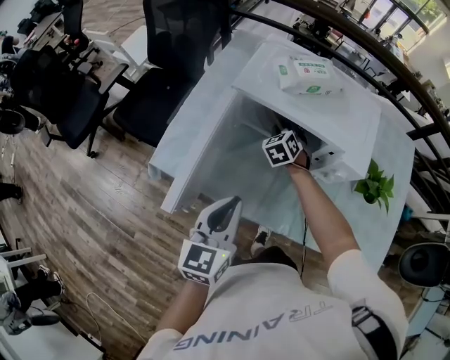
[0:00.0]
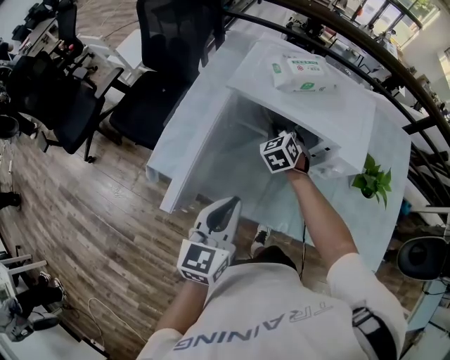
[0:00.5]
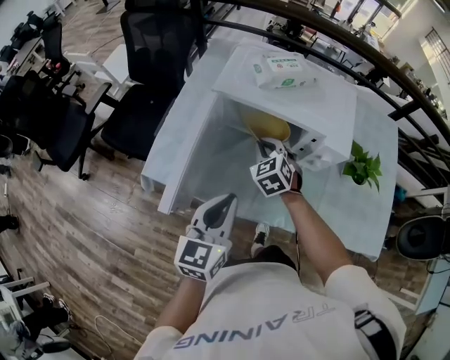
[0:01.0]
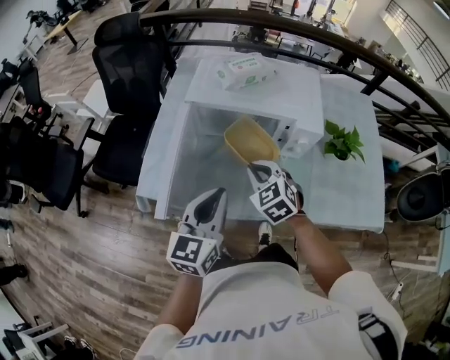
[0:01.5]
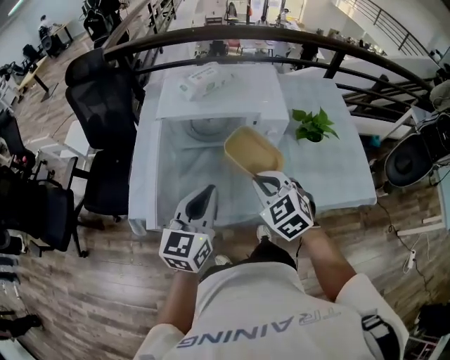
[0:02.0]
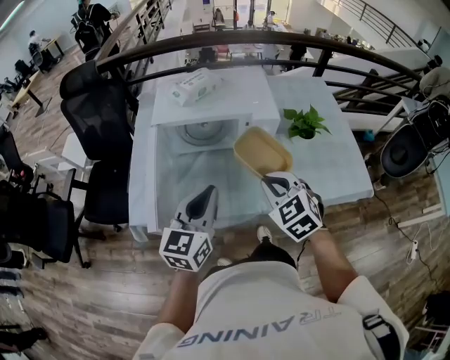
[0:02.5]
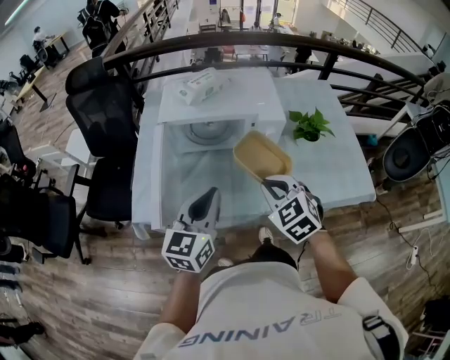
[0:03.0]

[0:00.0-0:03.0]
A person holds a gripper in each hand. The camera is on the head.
0:00.0 to 0:01.5: The right gripper heads backward and upward, covering approximately 25 cm.
0:01.5 to 0:03.0: The right gripper travels backward, to the right and upward by roughly 15 cm.

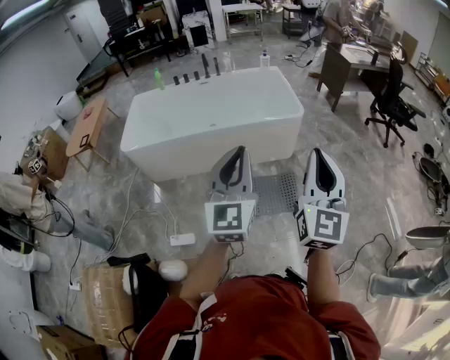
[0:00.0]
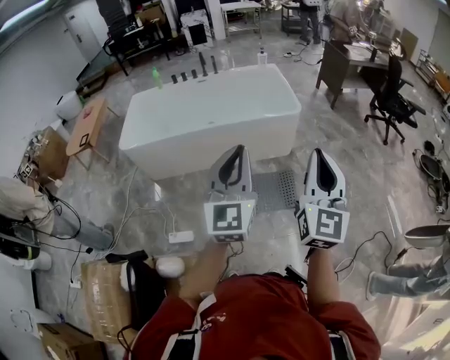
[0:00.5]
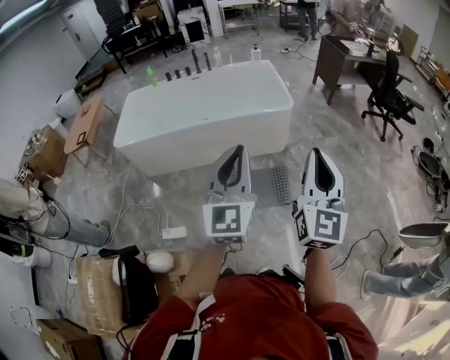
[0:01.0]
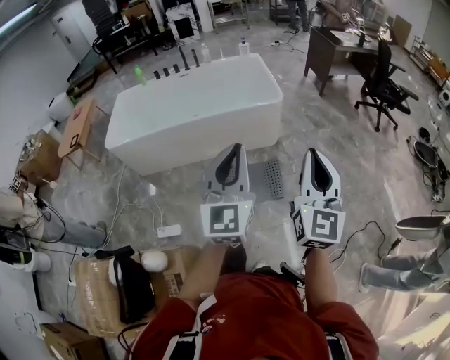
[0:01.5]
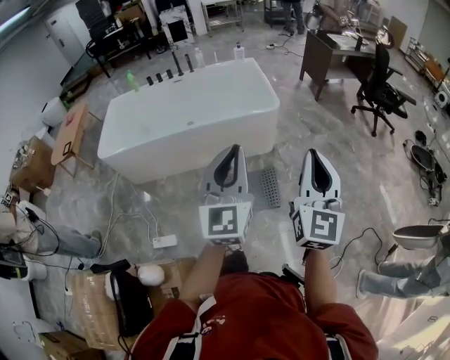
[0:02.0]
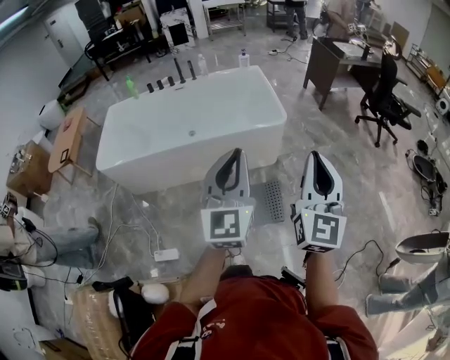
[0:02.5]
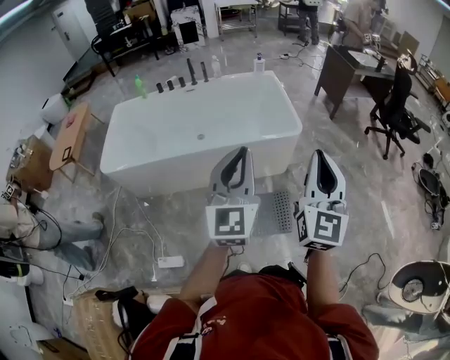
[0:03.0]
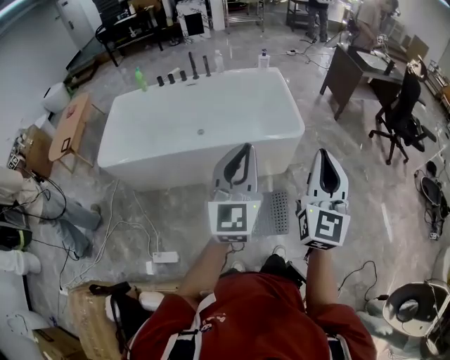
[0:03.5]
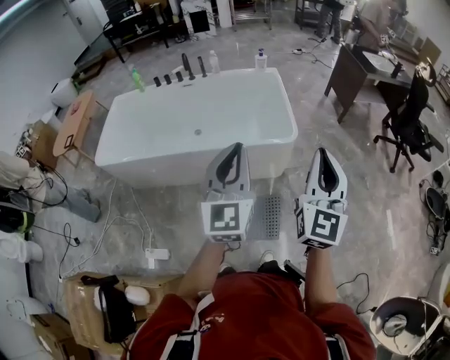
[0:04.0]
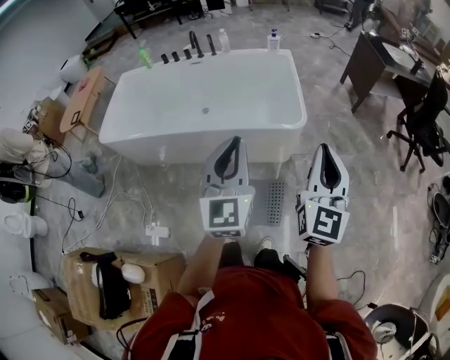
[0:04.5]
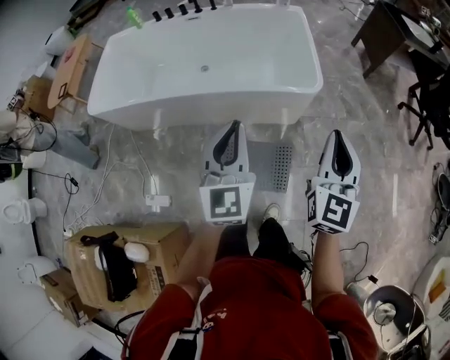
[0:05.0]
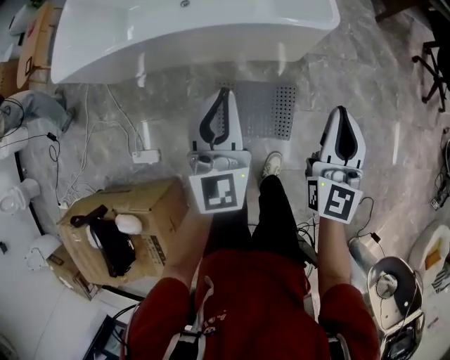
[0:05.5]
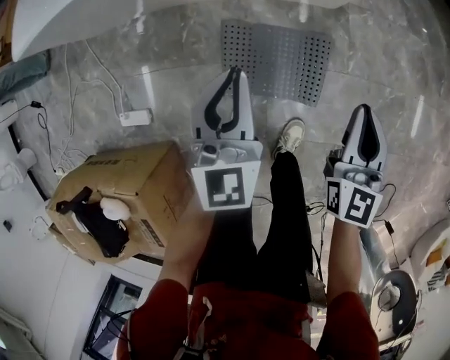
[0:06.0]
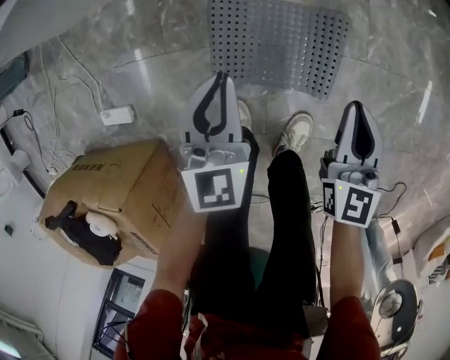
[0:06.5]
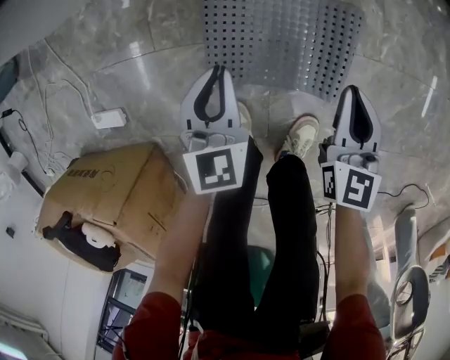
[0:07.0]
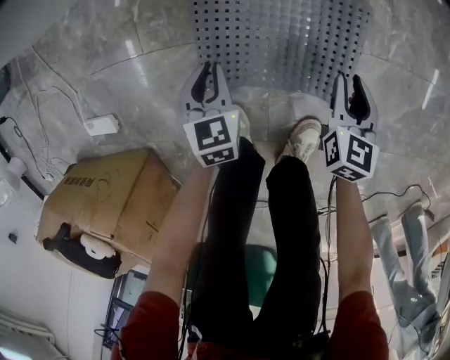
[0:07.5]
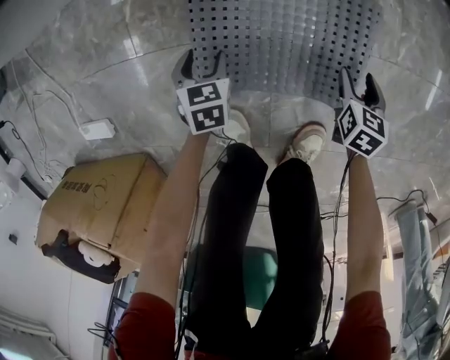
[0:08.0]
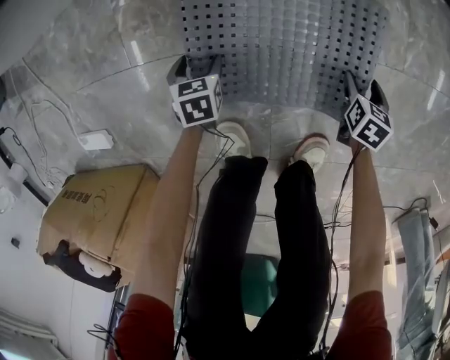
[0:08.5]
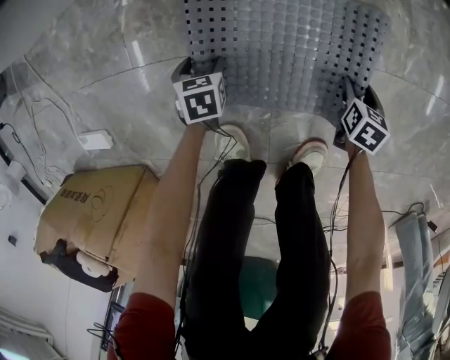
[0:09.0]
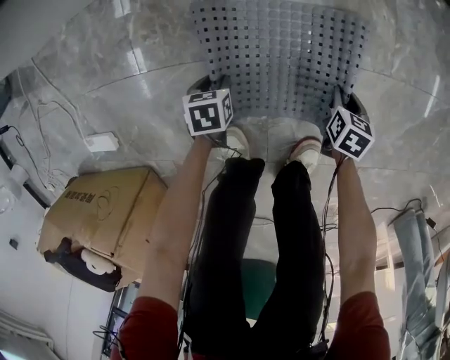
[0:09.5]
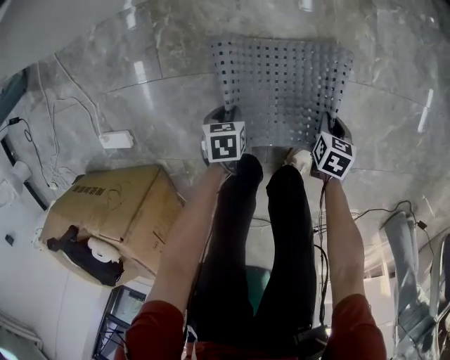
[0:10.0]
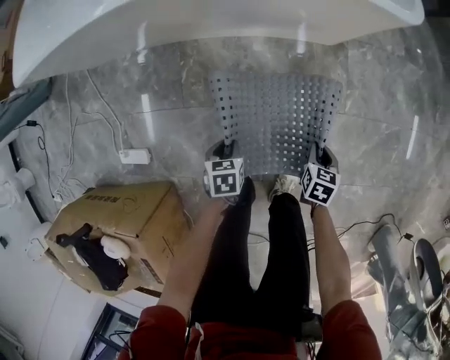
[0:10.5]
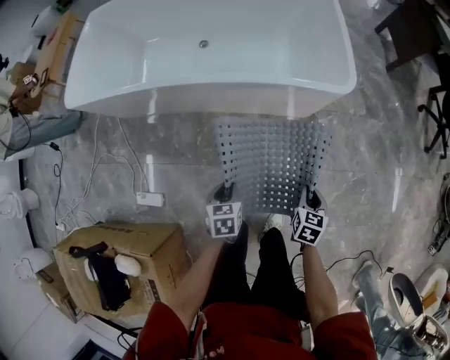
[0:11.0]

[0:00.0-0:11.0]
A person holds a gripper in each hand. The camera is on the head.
0:00.0 to 0:02.0: The two grippers go approximately 15 cm to the right and forward.
0:02.0 to 0:03.5: Both grippers travel together forward and to the left, roughly 25 cm.
0:03.5 to 0:05.5: The left gripper goes about 25 cm downward; the right gripper travels downward and forward by some 30 cm.
0:05.5 to 0:07.5: The two grippers go approximately 70 cm downward. The left gripper tilts its fingers some 40 degrees downward; the right gripper tips its fingers downward by approximately 40 degrees, and opens its fingers.
0:07.5 to 0:09.0: The grippers both shift downward by roughly 20 cm. The left gripper changes its angle by some 20 degrees, and opens its fingers. Meanwhile the right gripper changes its angle by some 20 degrees, and opens.
0:09.0 to 0:11.0: Both grippers travel together upward, some 60 cm. The right gripper closes up. The left gripper closes its fingers.

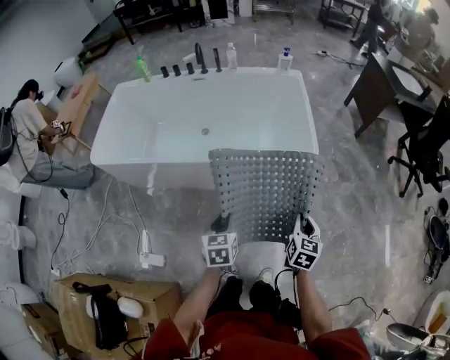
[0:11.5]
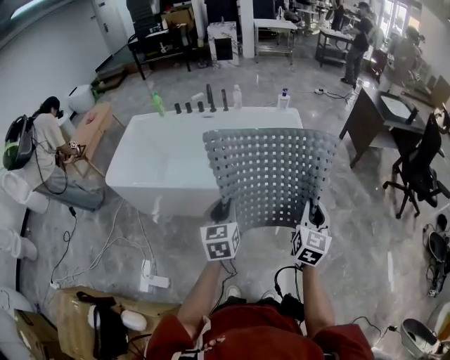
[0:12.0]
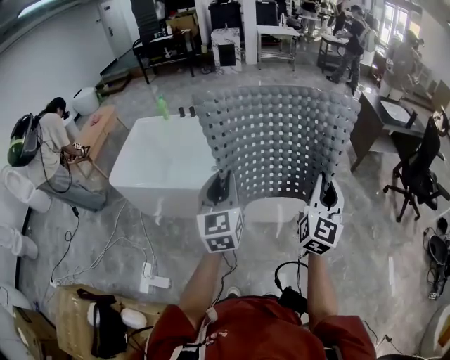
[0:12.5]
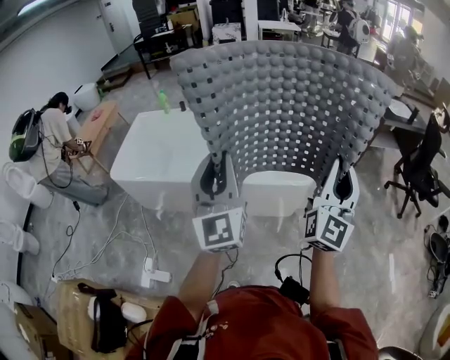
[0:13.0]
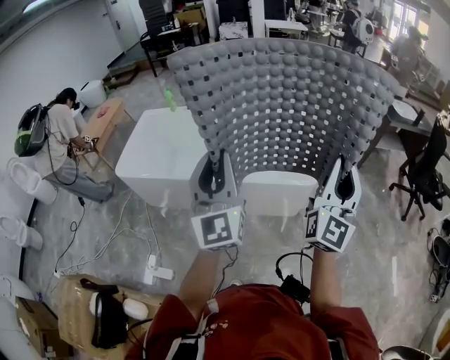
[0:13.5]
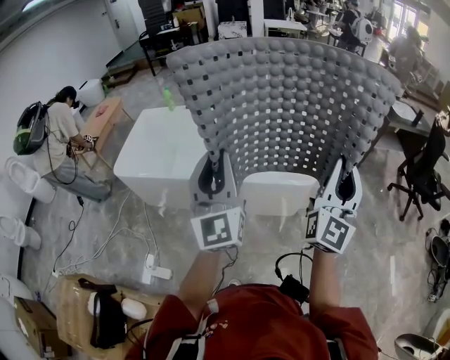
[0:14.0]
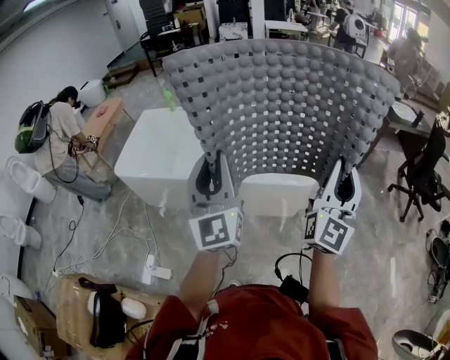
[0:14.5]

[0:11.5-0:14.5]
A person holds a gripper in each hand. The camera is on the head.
0:11.5 to 0:13.0: Both grippers travel together upward, approximately 40 cm. The right gripper angles its fingers upward, by approximately 60 degrees. Meanwhile the left gripper points its fingers approximately 60 degrees further upward.
0:13.0 to 0:14.5: The grippers move only a little.

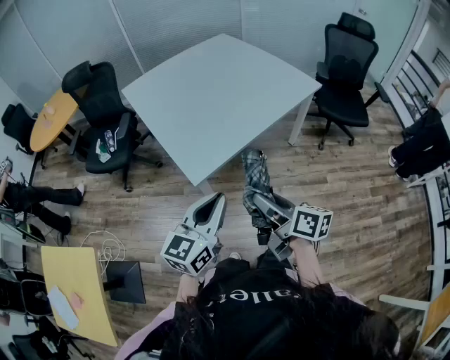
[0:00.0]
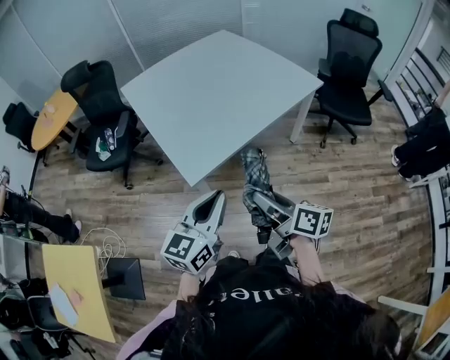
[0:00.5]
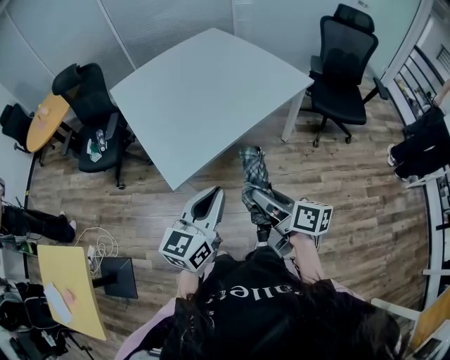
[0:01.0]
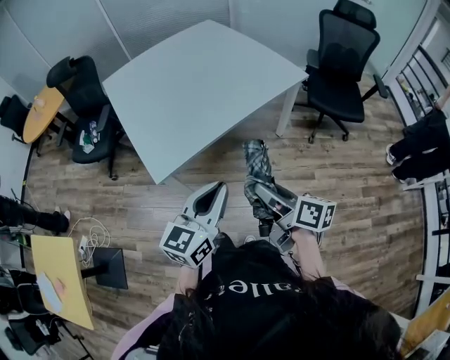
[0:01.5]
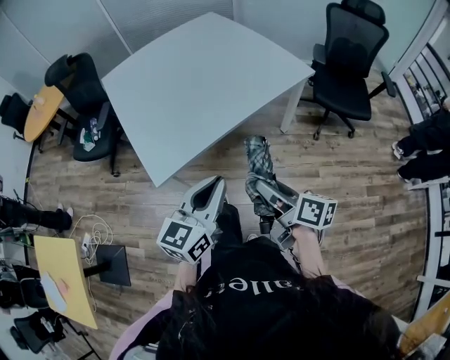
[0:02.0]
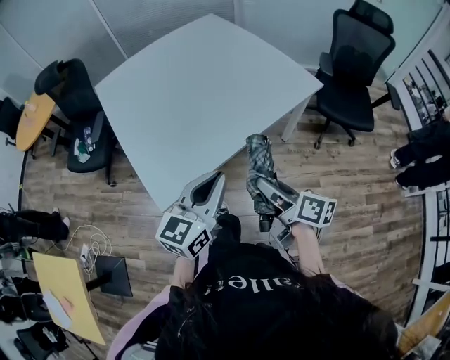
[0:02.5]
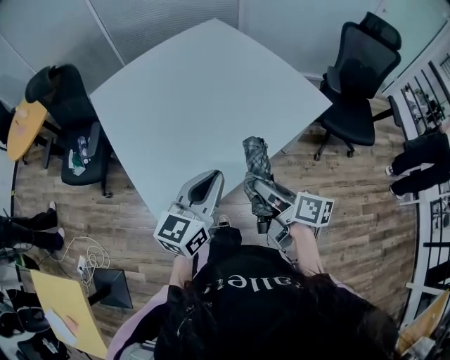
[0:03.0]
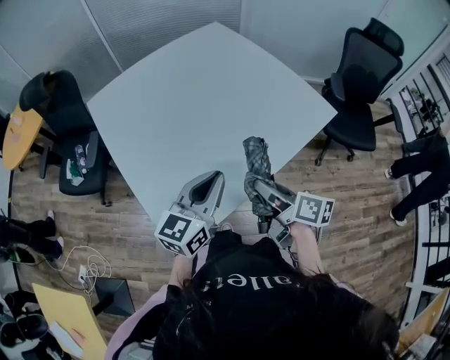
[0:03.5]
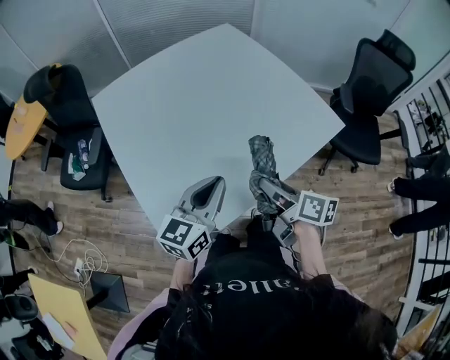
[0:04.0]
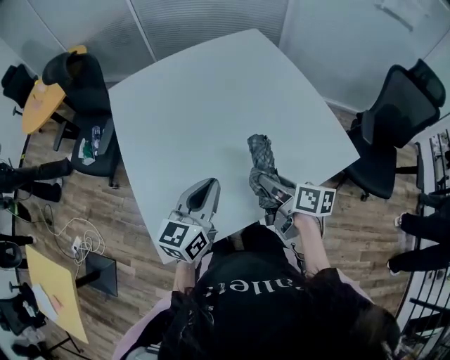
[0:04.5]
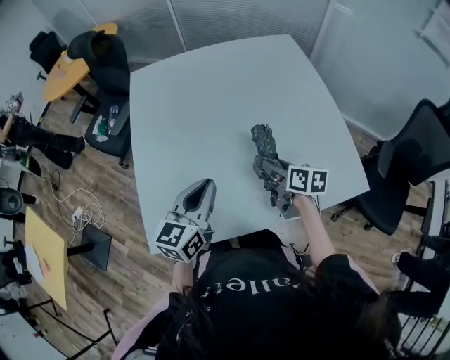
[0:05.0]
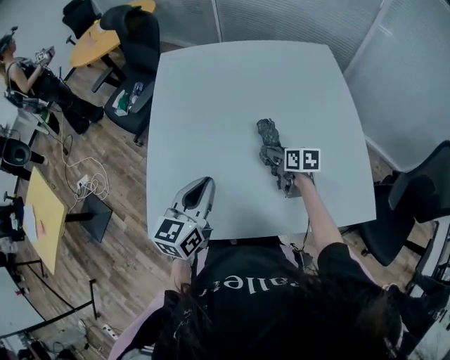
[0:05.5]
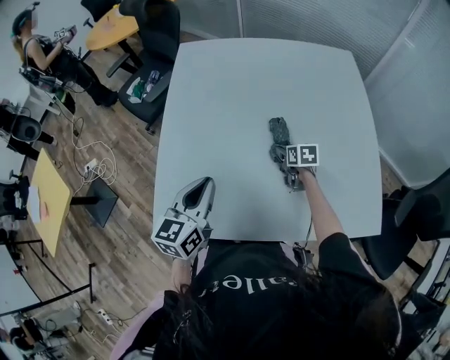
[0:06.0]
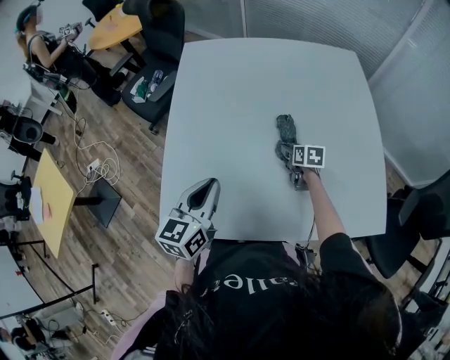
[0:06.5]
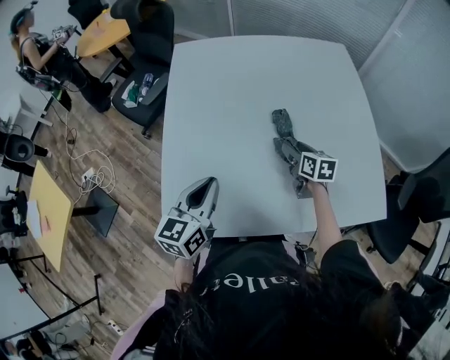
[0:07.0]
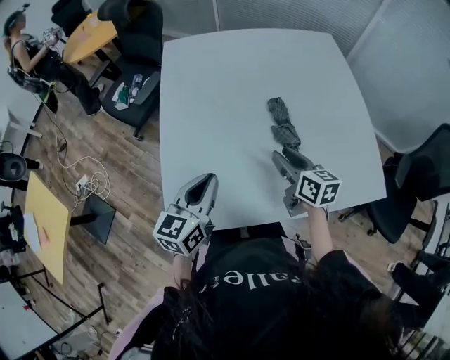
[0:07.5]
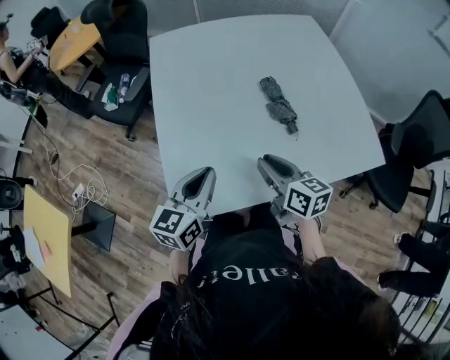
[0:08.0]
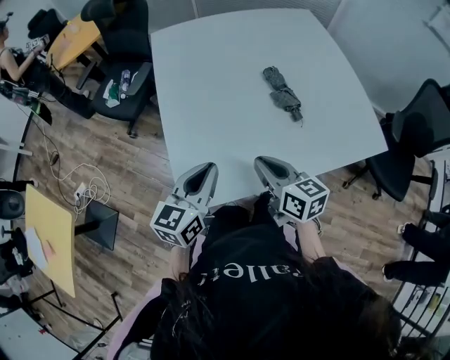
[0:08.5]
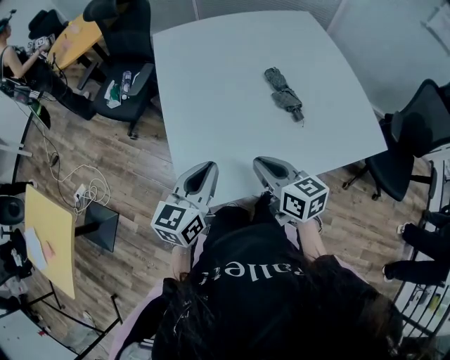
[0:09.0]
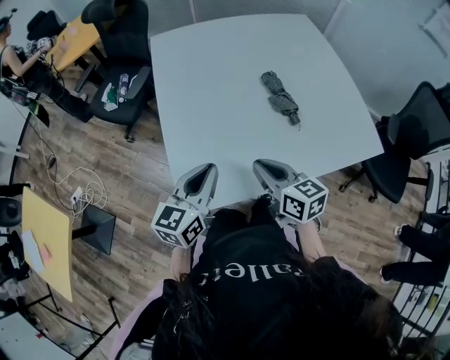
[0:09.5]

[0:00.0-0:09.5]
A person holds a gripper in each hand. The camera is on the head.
0:00.0 to 0:02.0: Both grippers travel together to the right and forward, approximately 20 cm.
0:02.0 to 0:04.0: The grippers both shift forward by some 30 cm.
0:04.0 to 0:05.5: The left gripper shifts by about 10 cm, and changes its angle by some 40 degrees, while the right gripper shifts by roughly 35 cm, and swivels approximately 50 degrees.
0:05.5 to 0:07.5: The left gripper moves to the left, some 10 cm. Meanwhile the right gripper goes roughly 15 cm upward, to the left and backward.
0:07.5 to 0:09.5: The left gripper goes about 10 cm backward and to the left; the right gripper heads backward and to the left, covering some 20 cm, and closes.
